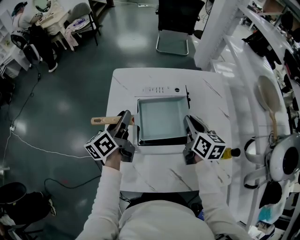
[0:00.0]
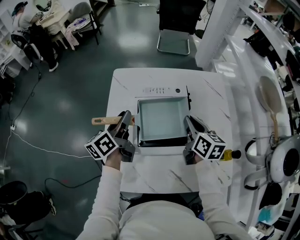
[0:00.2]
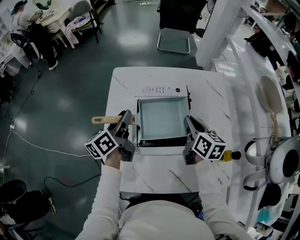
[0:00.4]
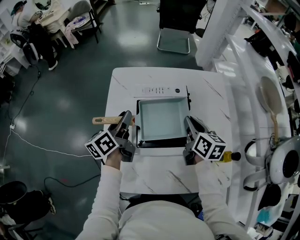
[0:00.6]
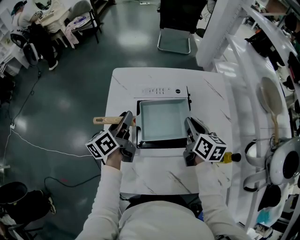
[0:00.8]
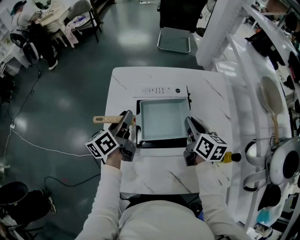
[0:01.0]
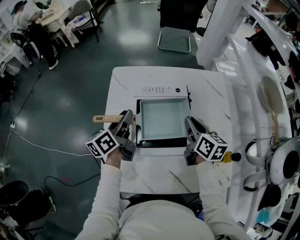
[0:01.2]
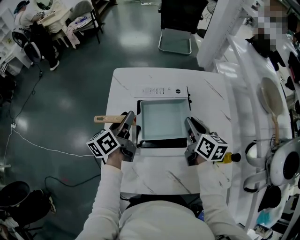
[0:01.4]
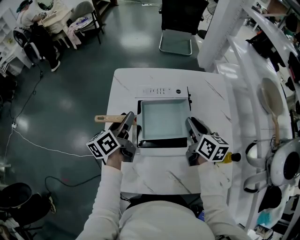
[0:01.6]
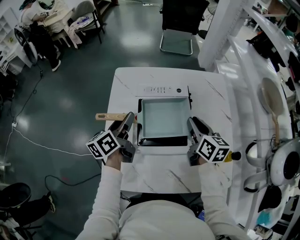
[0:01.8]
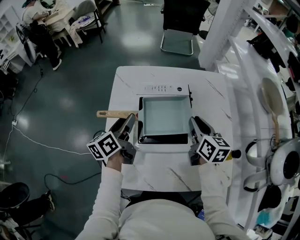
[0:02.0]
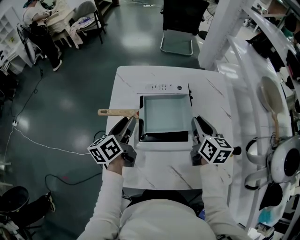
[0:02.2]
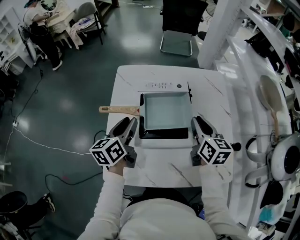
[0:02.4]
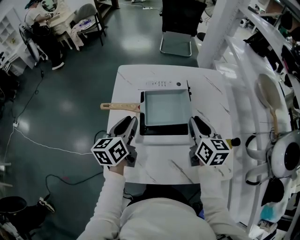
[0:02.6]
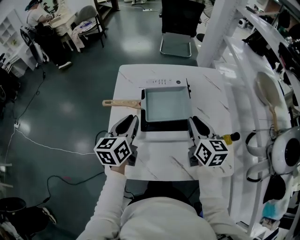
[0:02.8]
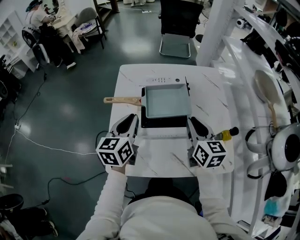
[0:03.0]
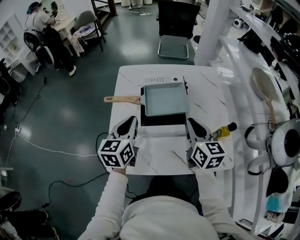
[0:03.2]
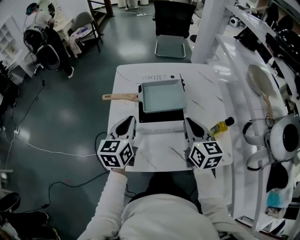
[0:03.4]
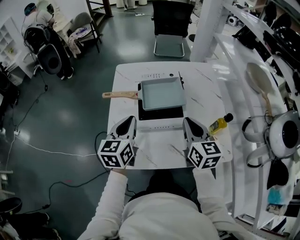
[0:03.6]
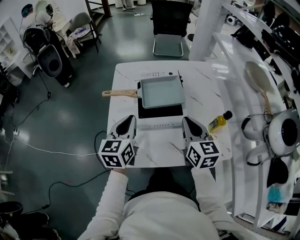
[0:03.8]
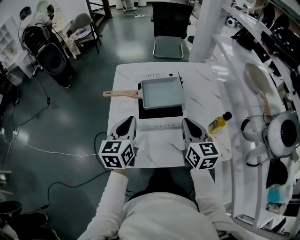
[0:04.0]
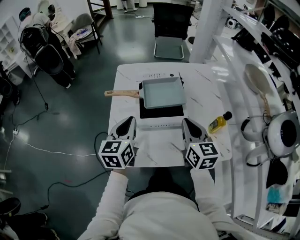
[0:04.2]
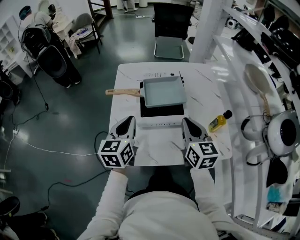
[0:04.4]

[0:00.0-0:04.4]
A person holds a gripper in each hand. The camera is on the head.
0:00.0 to 0:01.4: The grippers move only a little.
0:01.4 to 0:03.0: The left gripper is displaced backward by about 10 cm, rotates roughly 30 degrees, and closes its fingers; the right gripper is displaced backward and upward by approximately 15 cm.
0:03.0 to 0:04.4: Both grippers travel together backward, roughly 5 cm.

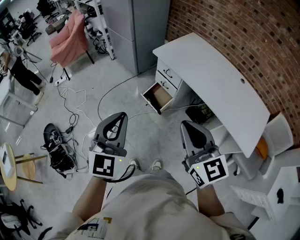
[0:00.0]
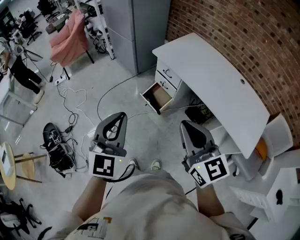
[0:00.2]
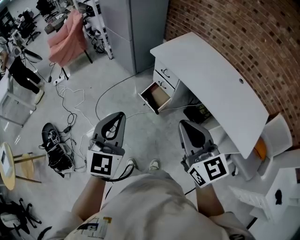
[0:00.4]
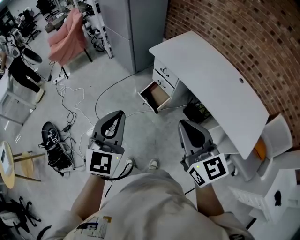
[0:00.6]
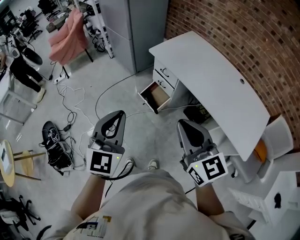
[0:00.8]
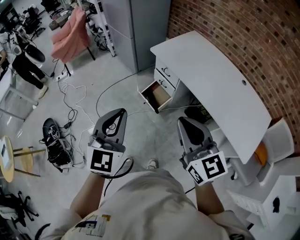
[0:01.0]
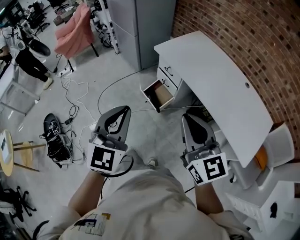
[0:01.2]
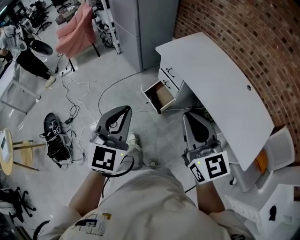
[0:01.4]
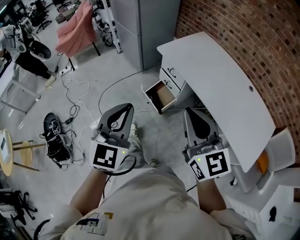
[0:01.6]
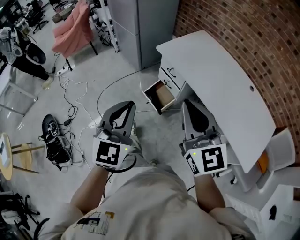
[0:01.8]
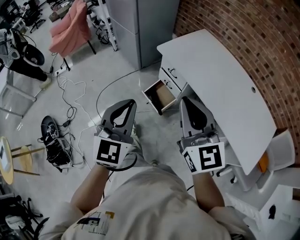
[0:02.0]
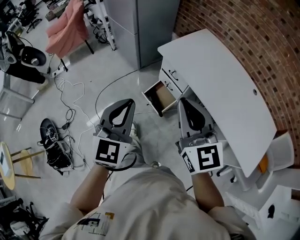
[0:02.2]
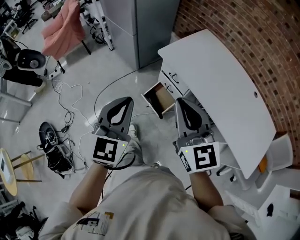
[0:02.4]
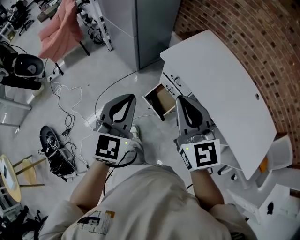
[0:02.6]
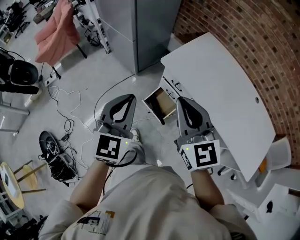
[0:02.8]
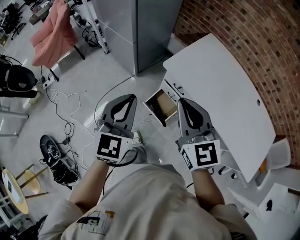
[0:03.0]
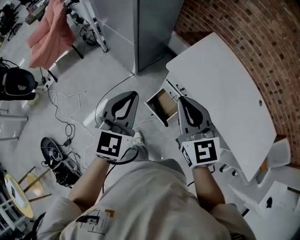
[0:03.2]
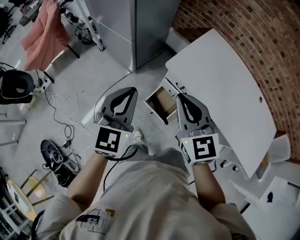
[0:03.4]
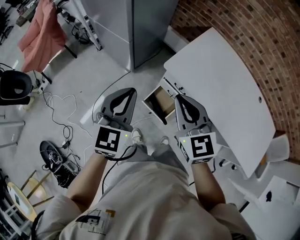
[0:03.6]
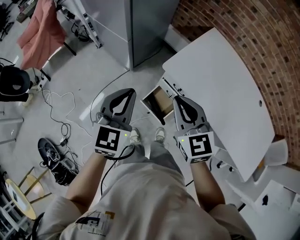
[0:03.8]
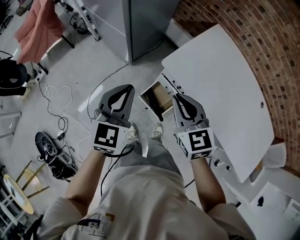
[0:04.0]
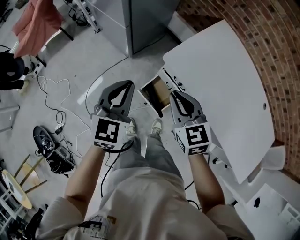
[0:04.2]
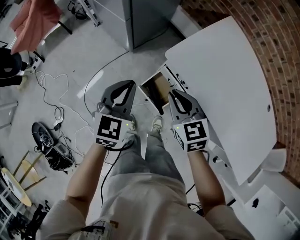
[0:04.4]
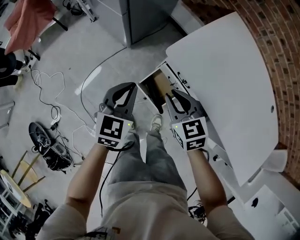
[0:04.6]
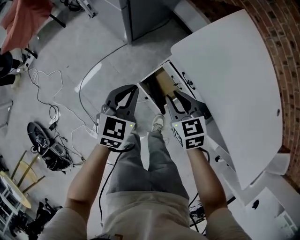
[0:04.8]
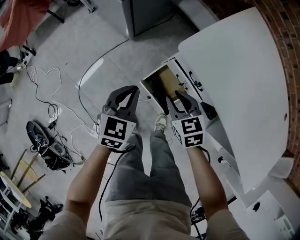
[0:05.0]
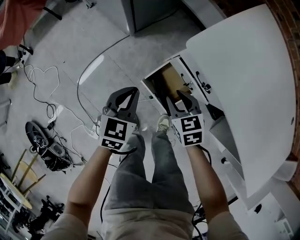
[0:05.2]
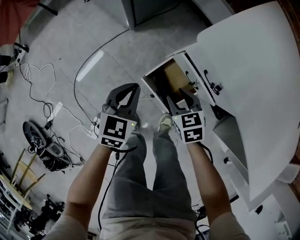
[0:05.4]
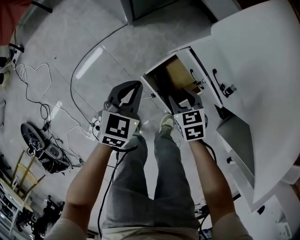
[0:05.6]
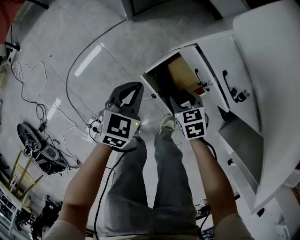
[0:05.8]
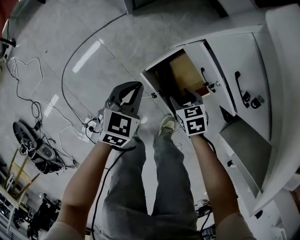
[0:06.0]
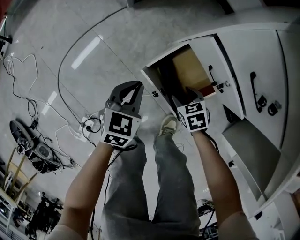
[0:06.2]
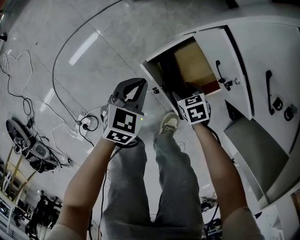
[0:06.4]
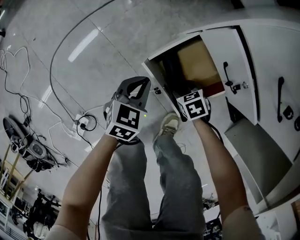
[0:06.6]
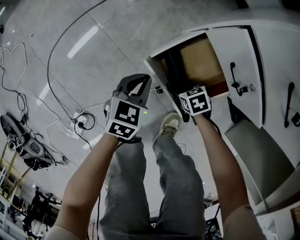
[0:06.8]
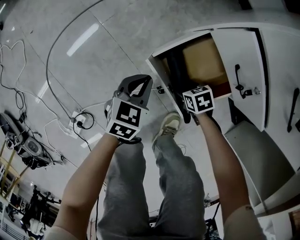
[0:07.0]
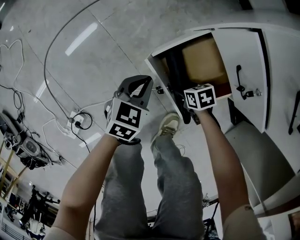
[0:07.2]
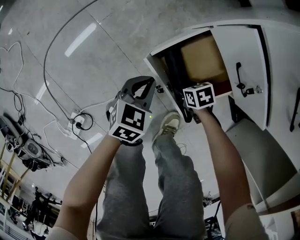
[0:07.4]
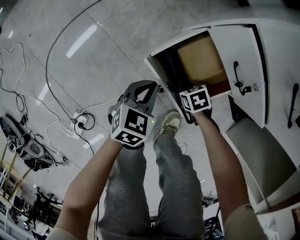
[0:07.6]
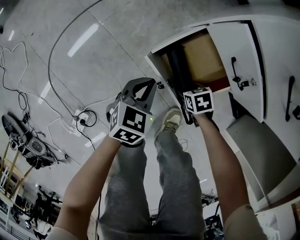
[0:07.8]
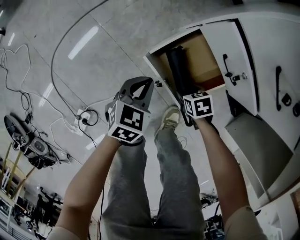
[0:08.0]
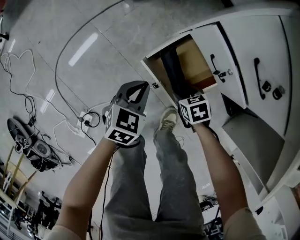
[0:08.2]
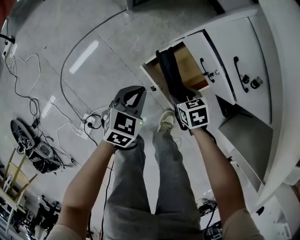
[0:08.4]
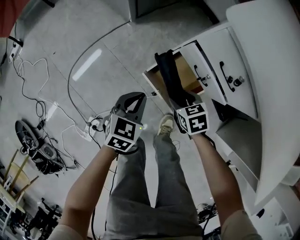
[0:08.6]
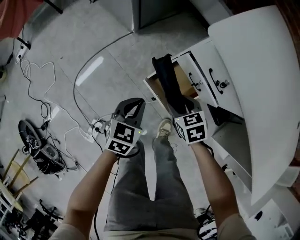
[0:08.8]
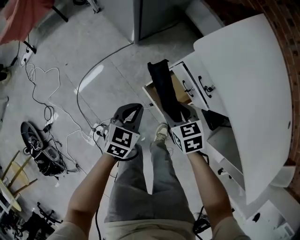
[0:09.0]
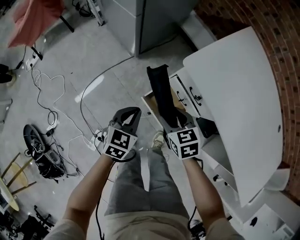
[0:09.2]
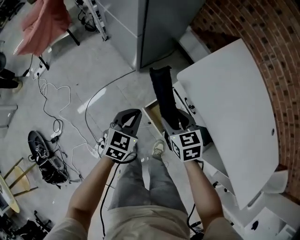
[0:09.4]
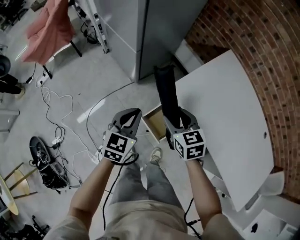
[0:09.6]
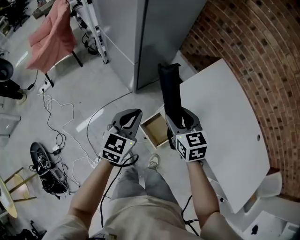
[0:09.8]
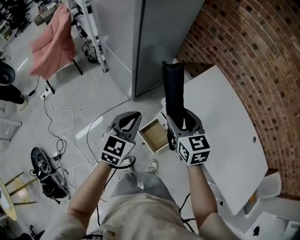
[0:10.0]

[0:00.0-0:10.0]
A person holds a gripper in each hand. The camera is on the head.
0:00.0 to 0:01.4: Both grippers travel together to the right, approximately 5 cm.
0:01.4 to 0:02.8: The right gripper shifts approximately 35 cm forward and to the left; the left gripper shifts about 30 cm forward.
0:02.8 to 0:04.2: The left gripper travels forward and downward by some 25 cm; the right gripper moves downward and forward, roughly 25 cm, and rotates approximately 20 degrees.
0:04.2 to 0:05.8: The grippers both shift downward by approximately 50 cm. The right gripper tilts its fingers roughly 30 degrees downward, and opens its fingers. Meanwhile the left gripper rotates approximately 20 degrees.
0:05.8 to 0:07.2: Both grippers move downward, approximately 25 cm. The right gripper changes its angle by some 30 degrees.
0:07.2 to 0:08.6: Both grippers move upward, about 25 cm. The right gripper turns by roughly 20 degrees.
0:08.6 to 0:10.0: The two grippers go about 60 cm upward. The right gripper angles its fingers upward, by approximately 40 degrees. Meanwhile the left gripper swivels some 30 degrees.

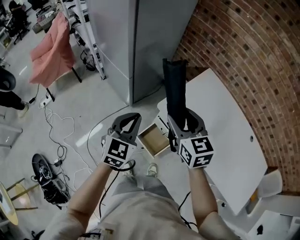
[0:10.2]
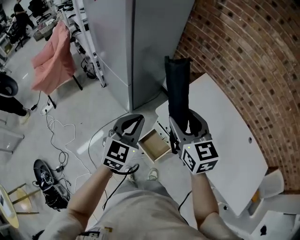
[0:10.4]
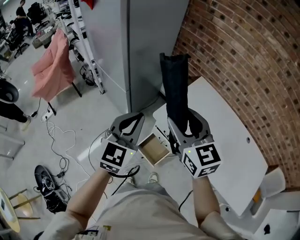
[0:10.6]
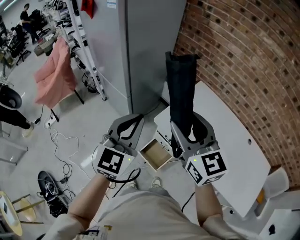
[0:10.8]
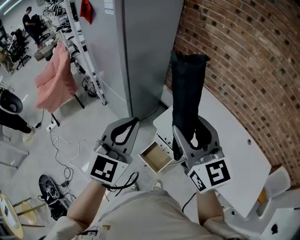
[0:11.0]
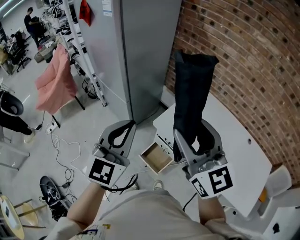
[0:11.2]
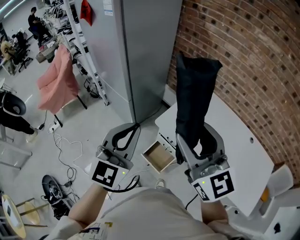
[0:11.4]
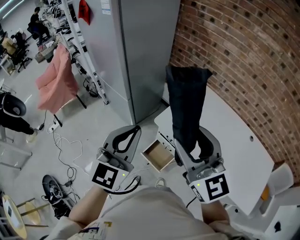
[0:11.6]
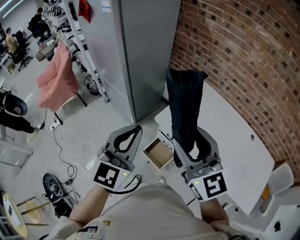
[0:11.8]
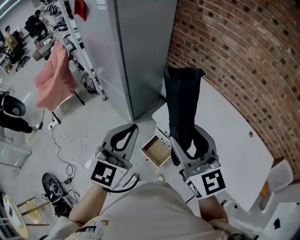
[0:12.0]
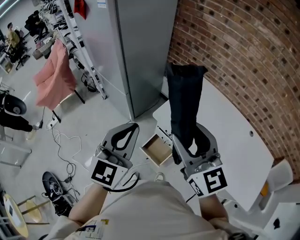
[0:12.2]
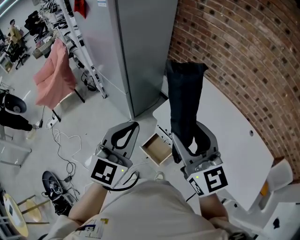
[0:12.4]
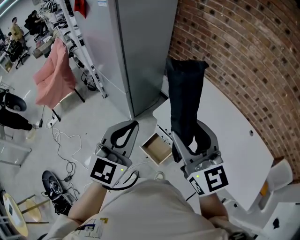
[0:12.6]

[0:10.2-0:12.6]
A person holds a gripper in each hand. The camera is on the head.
0:10.2 to 0:11.4: The right gripper travels upward and backward by some 25 cm, and rotates some 30 degrees; the left gripper moves upward, roughly 20 cm, and rotates roughly 20 degrees.
0:11.4 to 0:12.6: The grippers make only small movements.

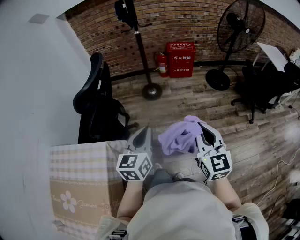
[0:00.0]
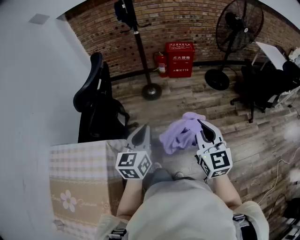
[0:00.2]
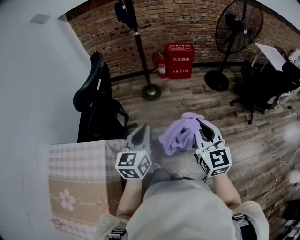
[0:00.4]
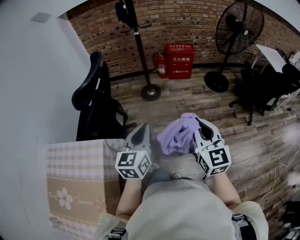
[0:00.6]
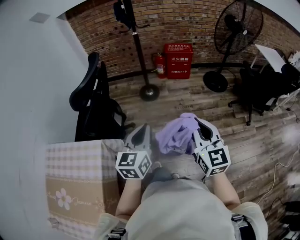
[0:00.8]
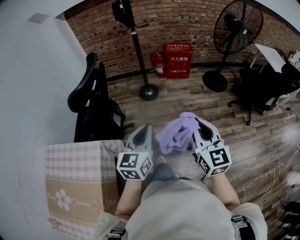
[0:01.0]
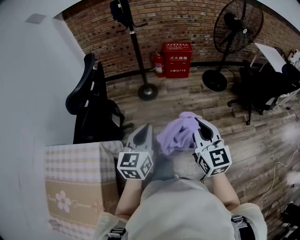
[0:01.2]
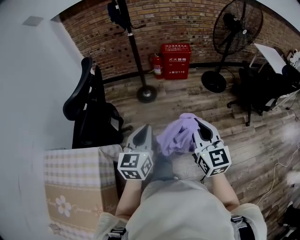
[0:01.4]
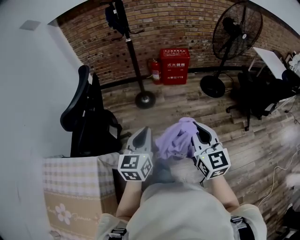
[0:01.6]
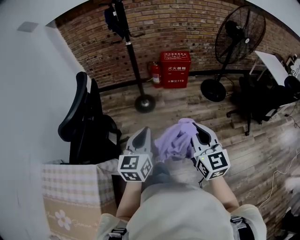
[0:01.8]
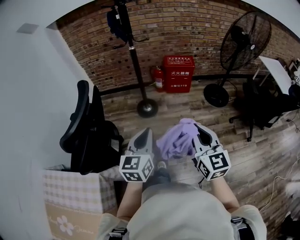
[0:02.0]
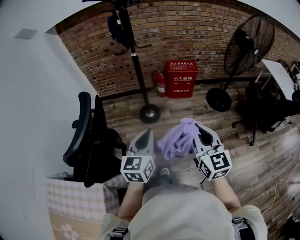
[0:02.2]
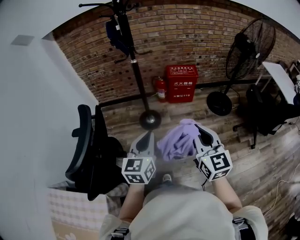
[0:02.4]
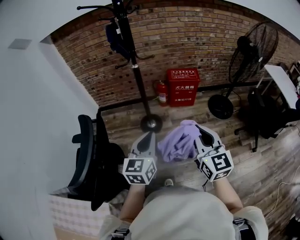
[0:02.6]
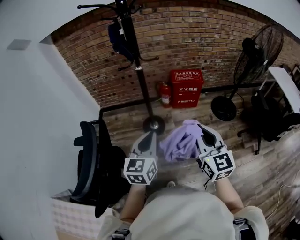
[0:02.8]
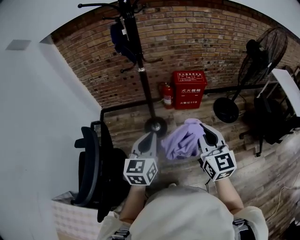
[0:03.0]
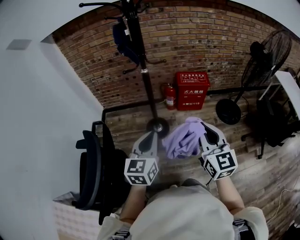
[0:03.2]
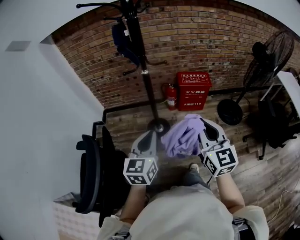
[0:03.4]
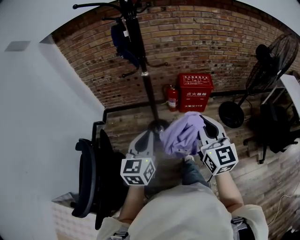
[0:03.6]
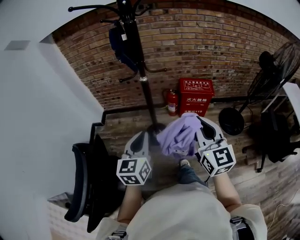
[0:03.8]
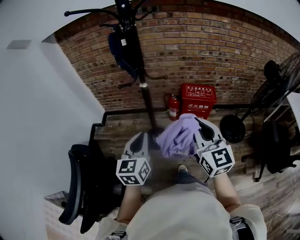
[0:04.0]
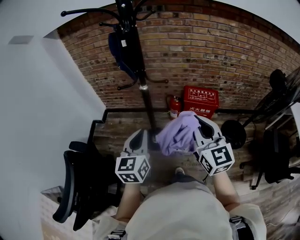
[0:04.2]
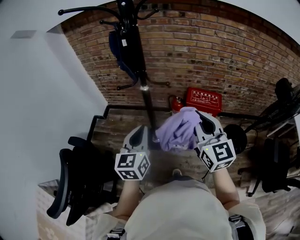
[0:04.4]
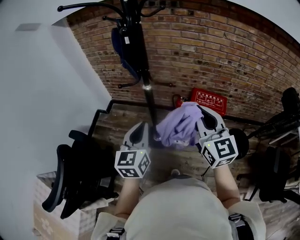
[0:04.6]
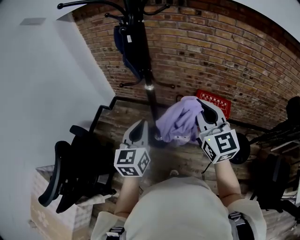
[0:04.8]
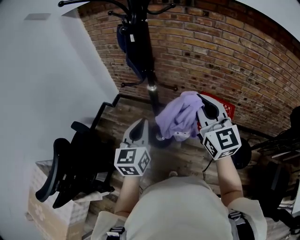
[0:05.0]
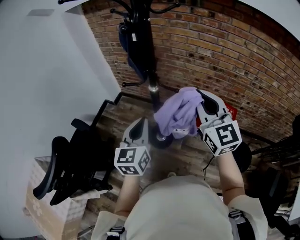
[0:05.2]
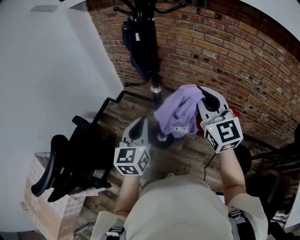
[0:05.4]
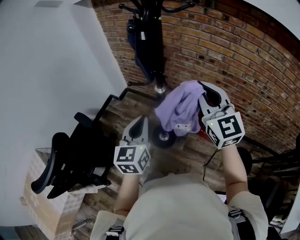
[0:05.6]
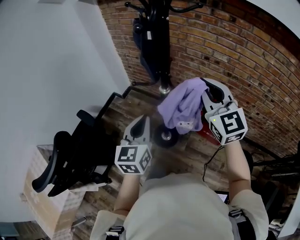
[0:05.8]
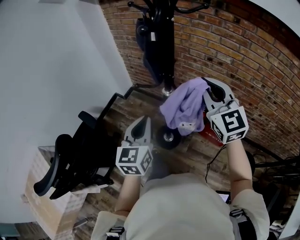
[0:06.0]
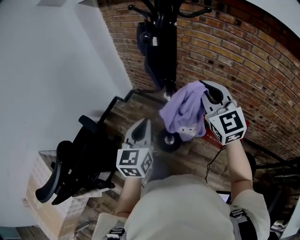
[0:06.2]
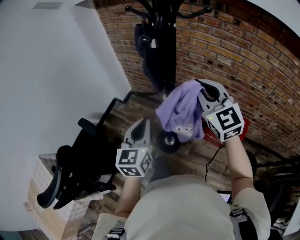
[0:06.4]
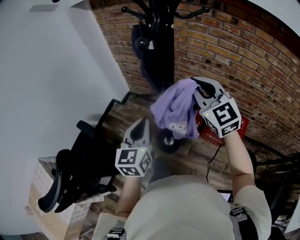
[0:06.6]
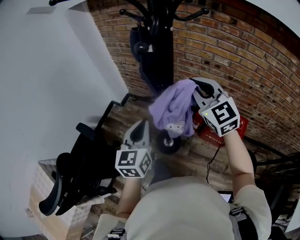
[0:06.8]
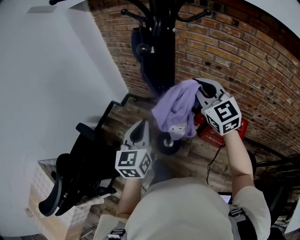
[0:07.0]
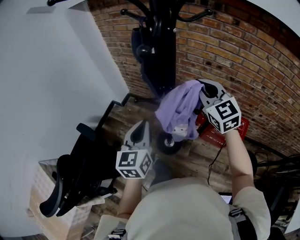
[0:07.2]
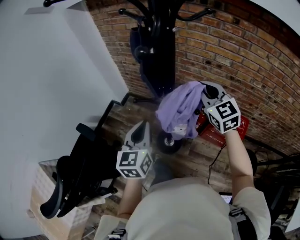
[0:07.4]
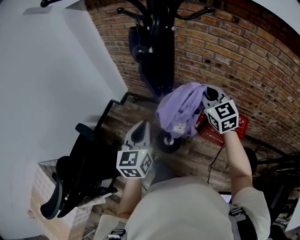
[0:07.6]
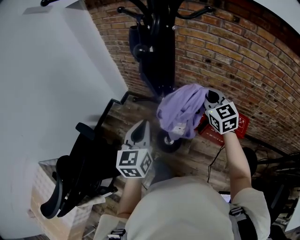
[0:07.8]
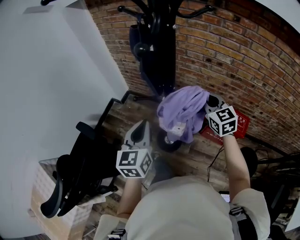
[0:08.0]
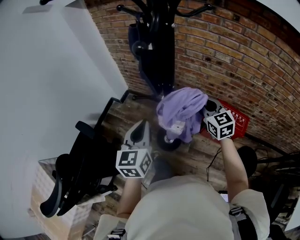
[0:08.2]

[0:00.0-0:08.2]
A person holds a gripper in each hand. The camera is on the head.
0:00.0 to 0:01.6: Both grippers travel together forward, some 10 cm.
0:01.6 to 0:03.2: The grippers both shift forward by roughly 35 cm.
0:03.2 to 0:05.0: The left gripper shifts by roughly 25 cm, and turns by some 30 degrees; the right gripper moves some 35 cm, and turns by about 30 degrees.
0:05.0 to 0:06.6: The right gripper travels forward by approximately 15 cm, and changes its angle by about 20 degrees; the left gripper moves forward, some 10 cm.
0:06.6 to 0:08.2: The right gripper is displaced downward and to the right by approximately 15 cm, and turns by approximately 20 degrees.
